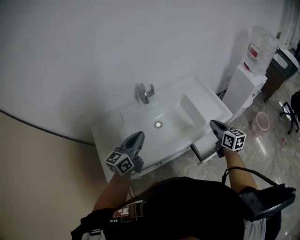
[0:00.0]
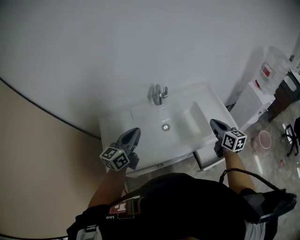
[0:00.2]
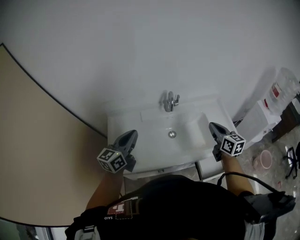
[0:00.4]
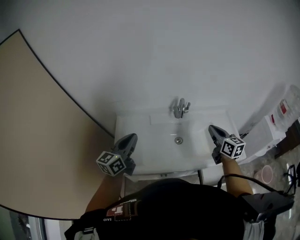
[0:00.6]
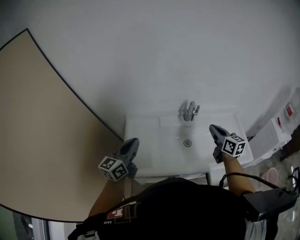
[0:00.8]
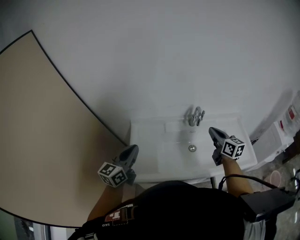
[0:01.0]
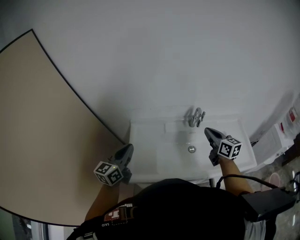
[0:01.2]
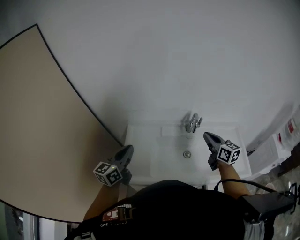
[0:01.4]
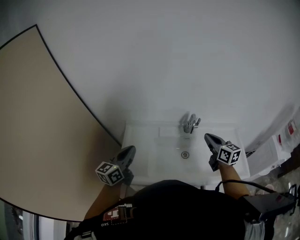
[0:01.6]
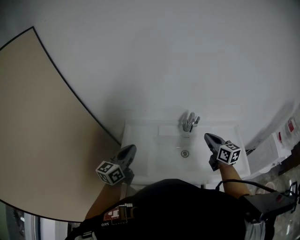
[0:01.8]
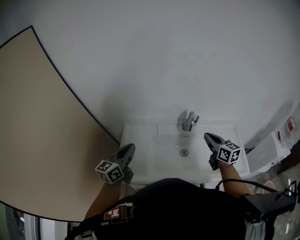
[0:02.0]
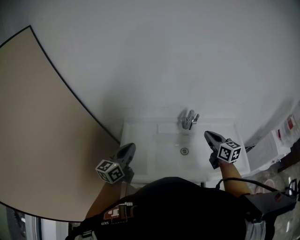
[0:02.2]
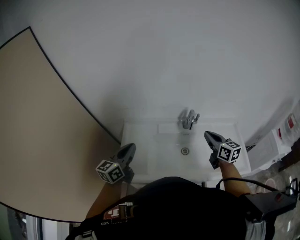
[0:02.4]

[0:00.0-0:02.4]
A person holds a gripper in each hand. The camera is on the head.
0:00.0 to 0:01.2: The right gripper moves roughly 35 cm, and turns by approximately 30 degrees; the left gripper ends up about 30 cm from where it was, and swivels about 30 degrees.
0:01.2 to 0:02.4: The two grippers go some 5 cm to the right.

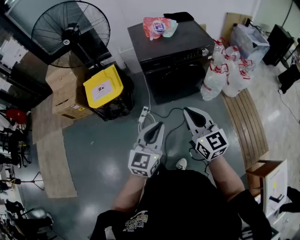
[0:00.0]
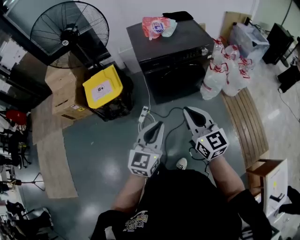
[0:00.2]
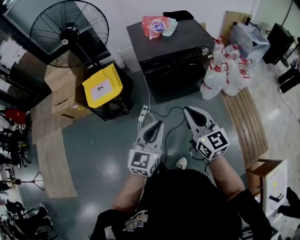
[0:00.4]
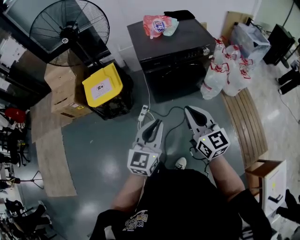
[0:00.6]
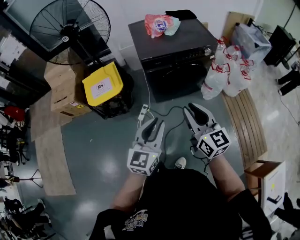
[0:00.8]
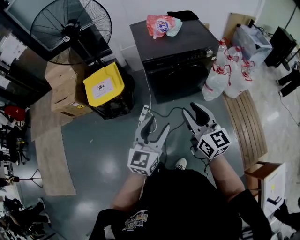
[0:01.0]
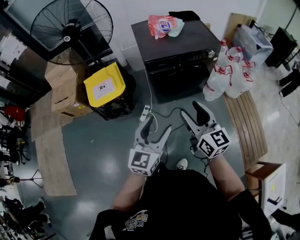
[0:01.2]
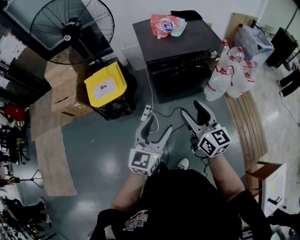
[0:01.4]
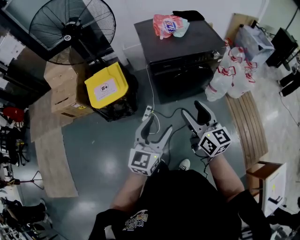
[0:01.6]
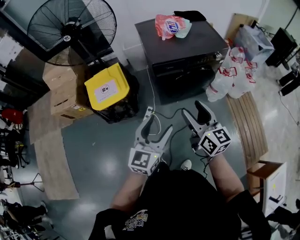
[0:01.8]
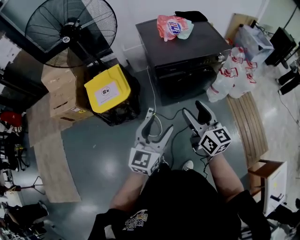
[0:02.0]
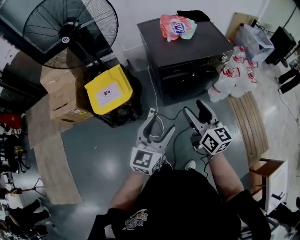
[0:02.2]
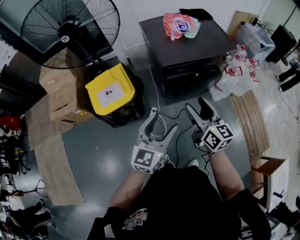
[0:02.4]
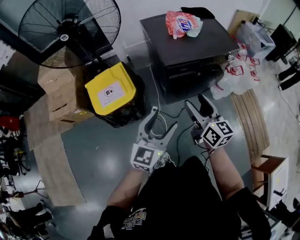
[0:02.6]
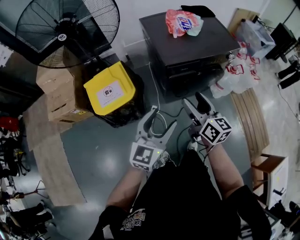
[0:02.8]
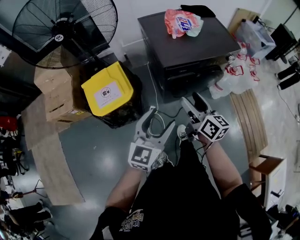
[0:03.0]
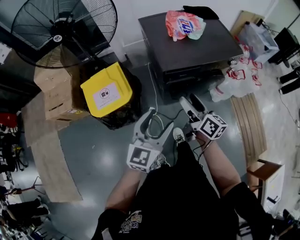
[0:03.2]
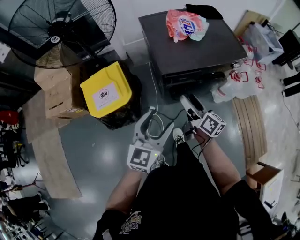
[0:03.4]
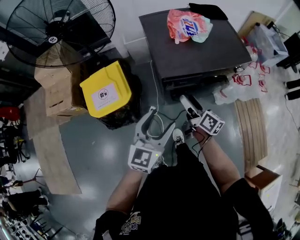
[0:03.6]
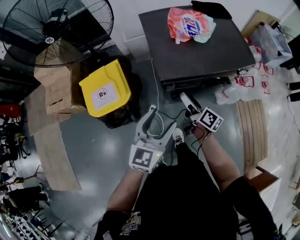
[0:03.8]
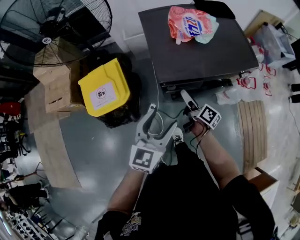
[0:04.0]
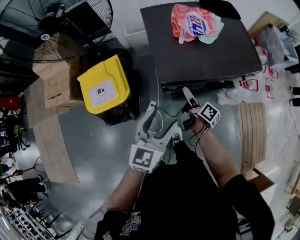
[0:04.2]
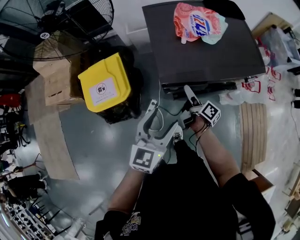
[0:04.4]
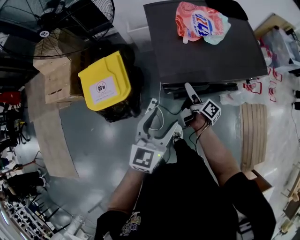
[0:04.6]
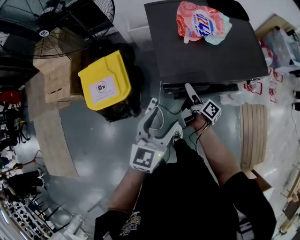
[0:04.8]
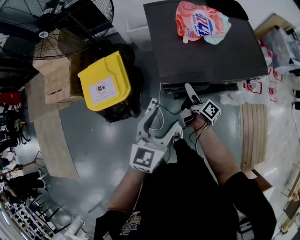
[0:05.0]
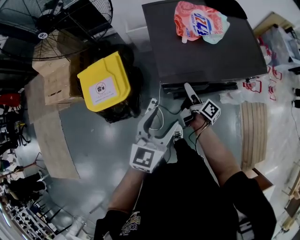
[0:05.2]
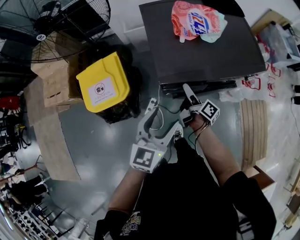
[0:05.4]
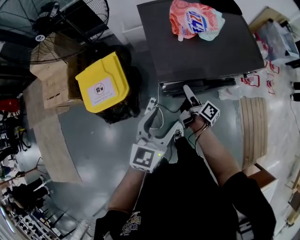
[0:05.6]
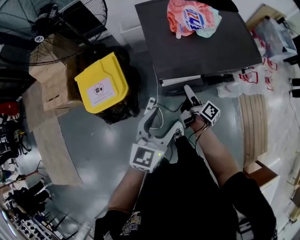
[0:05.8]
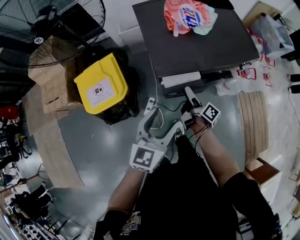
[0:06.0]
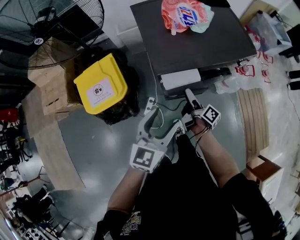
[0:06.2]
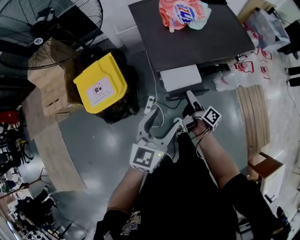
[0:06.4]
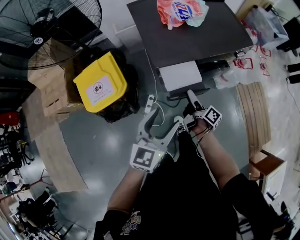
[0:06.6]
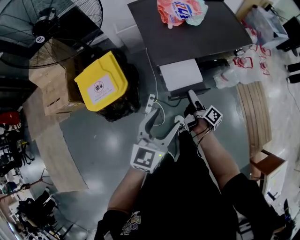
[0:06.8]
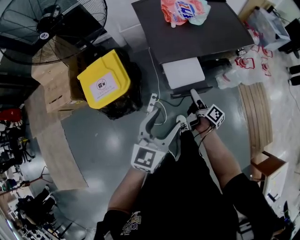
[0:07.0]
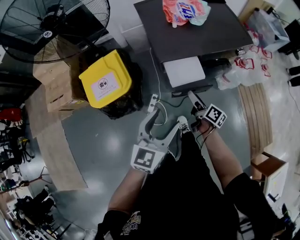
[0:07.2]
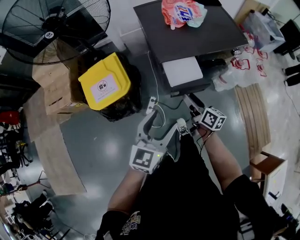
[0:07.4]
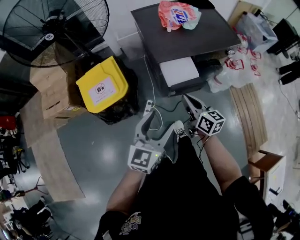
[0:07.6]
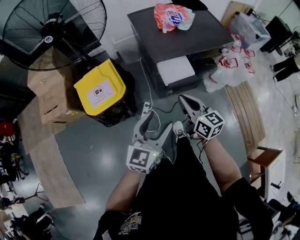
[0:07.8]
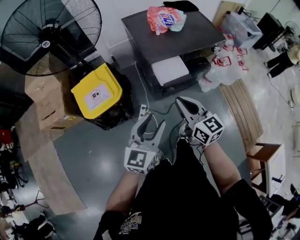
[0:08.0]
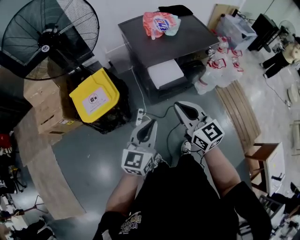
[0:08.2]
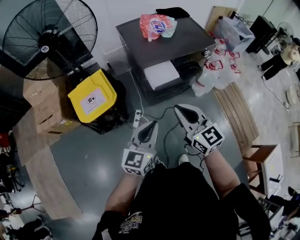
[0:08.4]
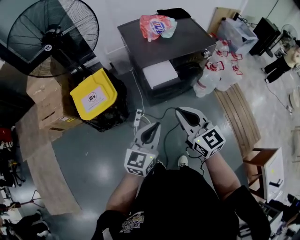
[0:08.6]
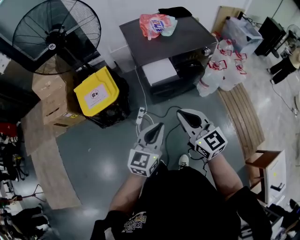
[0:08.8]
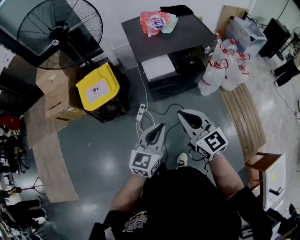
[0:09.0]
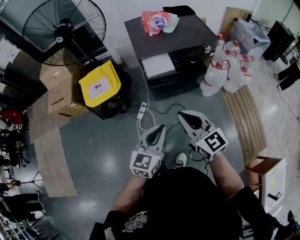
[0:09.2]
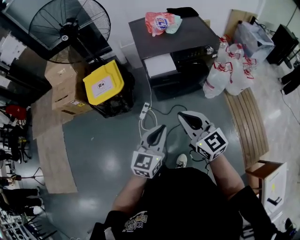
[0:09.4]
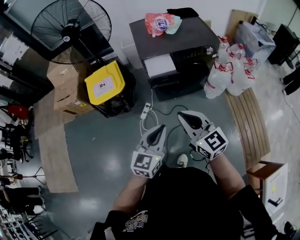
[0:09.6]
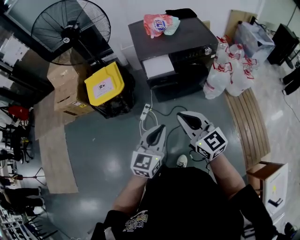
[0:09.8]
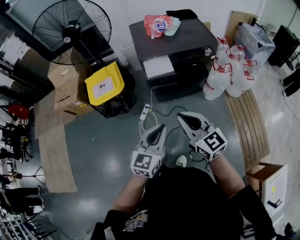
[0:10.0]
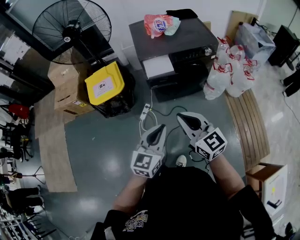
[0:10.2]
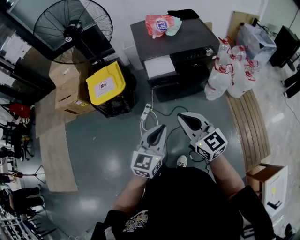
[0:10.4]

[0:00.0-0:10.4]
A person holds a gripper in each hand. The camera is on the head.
0:00.0 to 0:01.4: The left gripper shifts by roughly 5 cm, and opens. The right gripper travels forward by approximately 5 cm, and opens up.
0:01.4 to 0:03.0: Both grippers move forward and to the left, approximately 20 cm. The right gripper swivels approximately 20 degrees.
0:03.0 to 0:04.4: The right gripper is displaced downward and forward by roughly 30 cm, and rolls clockwise, seen from behind, by some 40 degrees. Meanwhile the left gripper is displaced forward and to the right by some 20 cm.
0:04.4 to 0:06.0: The right gripper shifts about 5 cm backward.
0:06.0 to 0:07.4: The right gripper shifts some 15 cm backward and upward, and turns by approximately 30 degrees; the left gripper heads backward, covering approximately 10 cm.
0:07.4 to 0:09.0: The right gripper goes some 30 cm backward and upward, rolls counterclockwise, seen from behind, by approximately 50 degrees, and closes its fingers; the left gripper travels backward and to the right by roughly 20 cm, and closes its fingers.
0:09.0 to 0:10.4: The grippers both shift backward by approximately 5 cm.

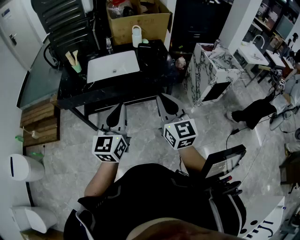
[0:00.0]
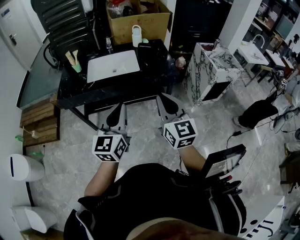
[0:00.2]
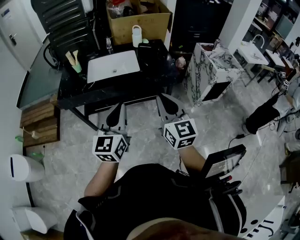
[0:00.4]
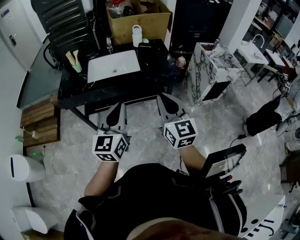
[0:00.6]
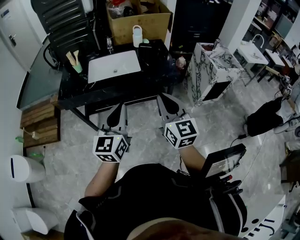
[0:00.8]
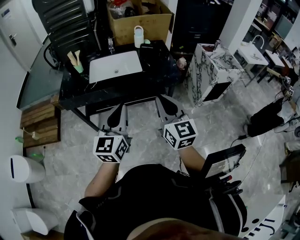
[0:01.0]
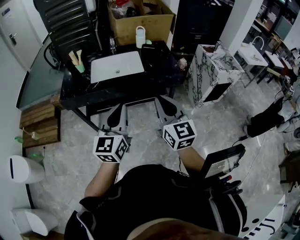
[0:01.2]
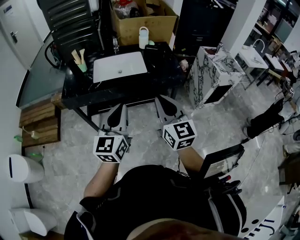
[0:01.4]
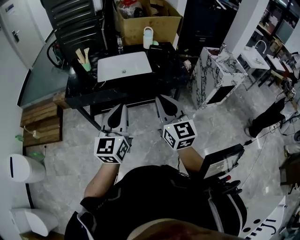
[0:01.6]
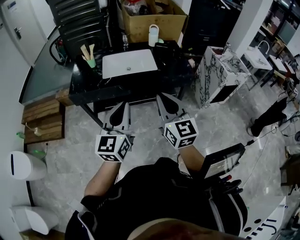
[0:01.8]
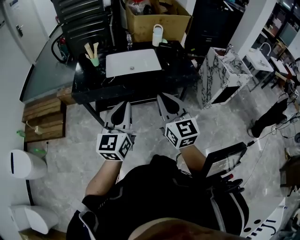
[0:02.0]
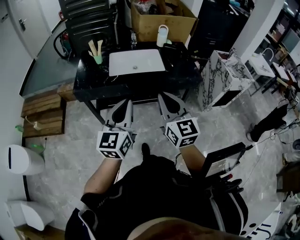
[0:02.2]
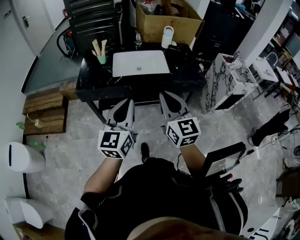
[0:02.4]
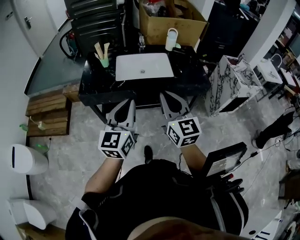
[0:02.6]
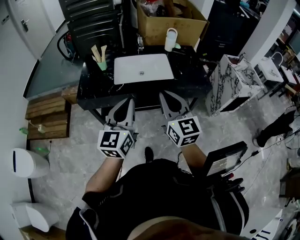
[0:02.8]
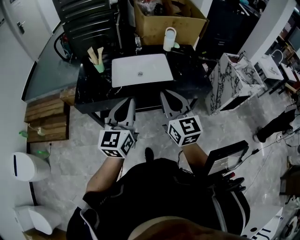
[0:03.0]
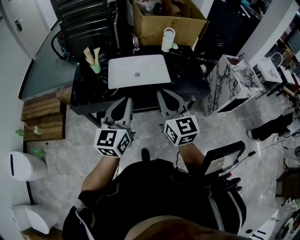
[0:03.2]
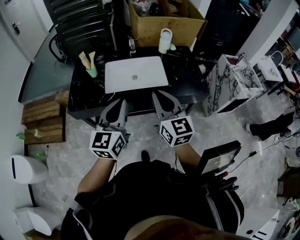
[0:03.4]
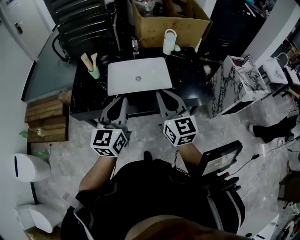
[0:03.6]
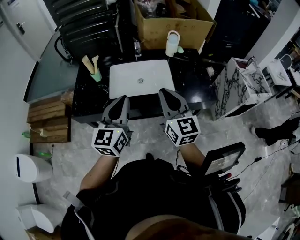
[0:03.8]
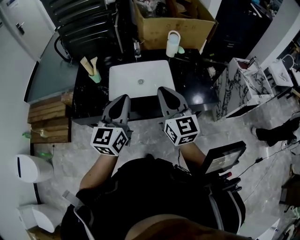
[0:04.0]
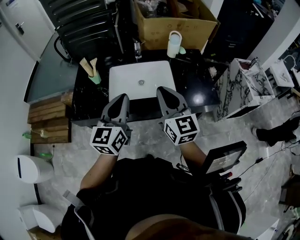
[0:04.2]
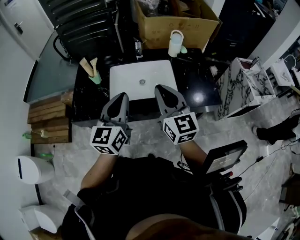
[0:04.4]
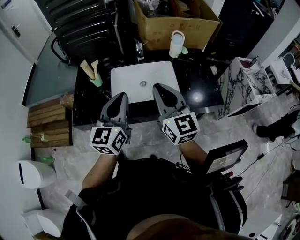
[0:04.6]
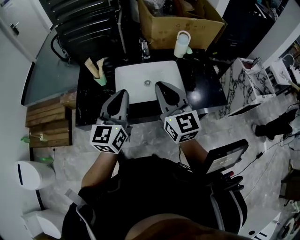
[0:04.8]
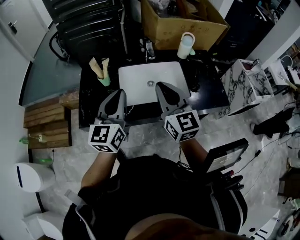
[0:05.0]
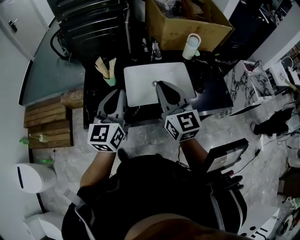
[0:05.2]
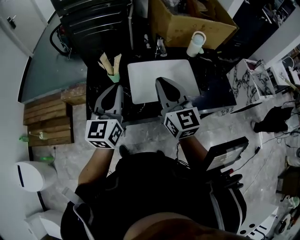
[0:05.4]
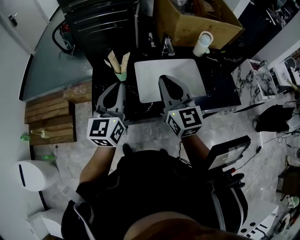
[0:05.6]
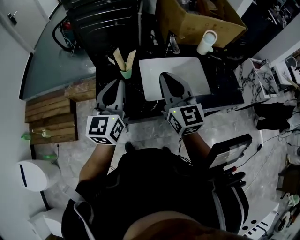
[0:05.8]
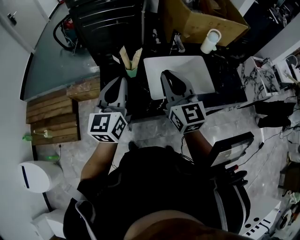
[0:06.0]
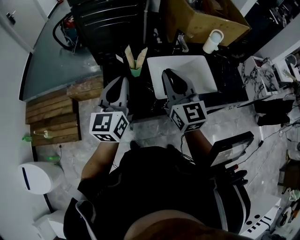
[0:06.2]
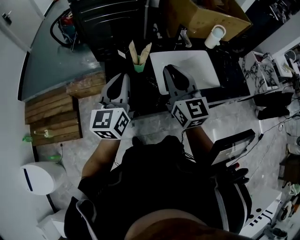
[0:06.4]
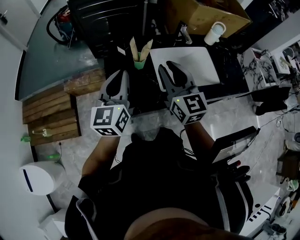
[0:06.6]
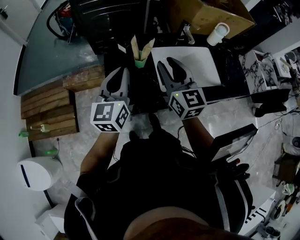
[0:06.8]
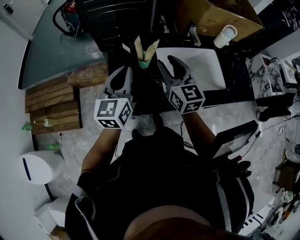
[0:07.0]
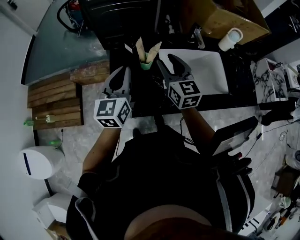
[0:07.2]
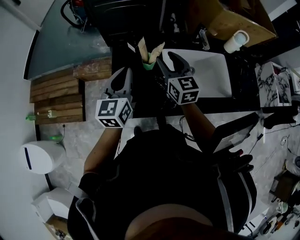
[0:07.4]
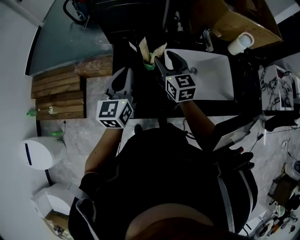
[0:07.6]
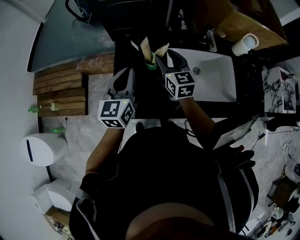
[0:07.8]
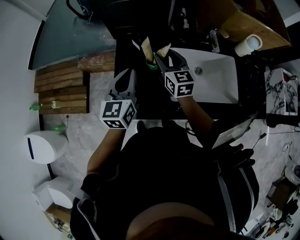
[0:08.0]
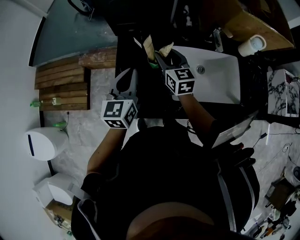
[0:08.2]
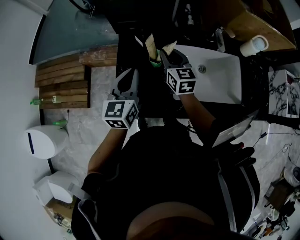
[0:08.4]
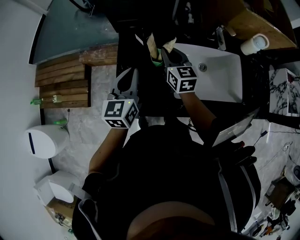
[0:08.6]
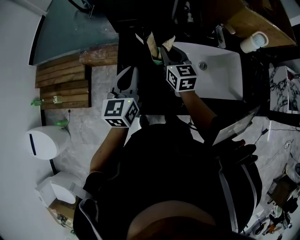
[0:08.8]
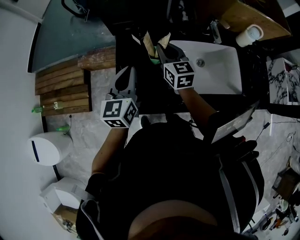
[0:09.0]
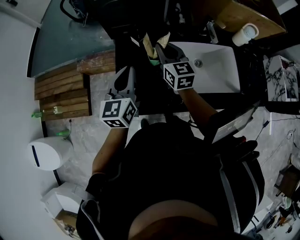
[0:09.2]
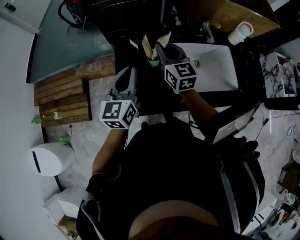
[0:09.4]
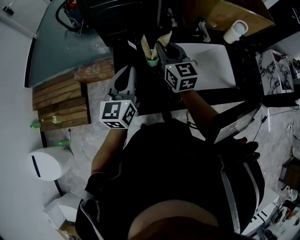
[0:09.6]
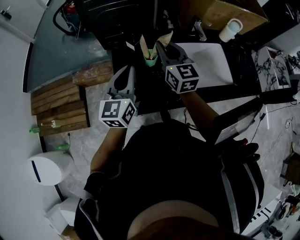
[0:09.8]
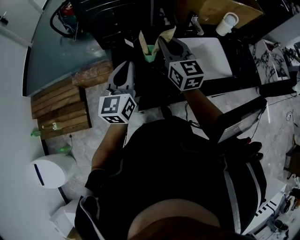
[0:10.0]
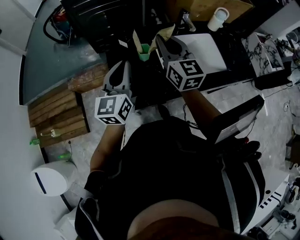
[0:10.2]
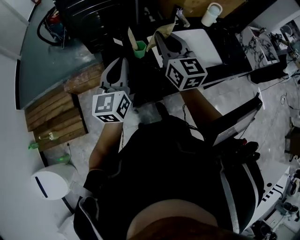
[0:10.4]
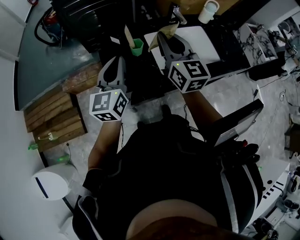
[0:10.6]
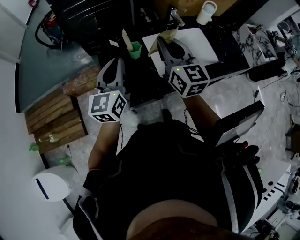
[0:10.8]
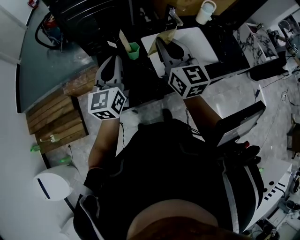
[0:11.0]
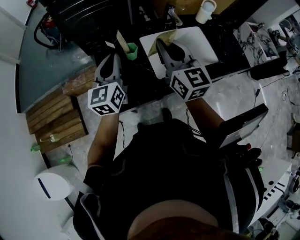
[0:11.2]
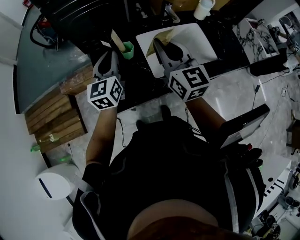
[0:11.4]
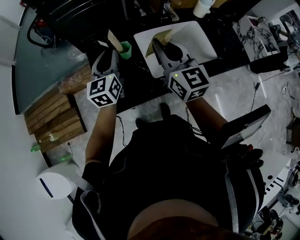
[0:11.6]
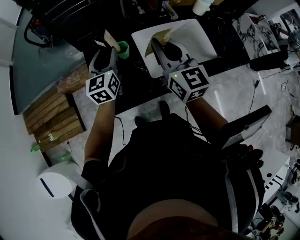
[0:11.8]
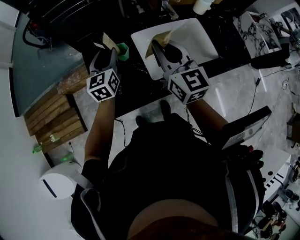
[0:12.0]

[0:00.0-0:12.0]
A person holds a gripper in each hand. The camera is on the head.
0:00.0 to 0:01.6: The grippers both shift to the left by about 10 cm.
0:01.6 to 0:03.0: Both grippers travel together forward and to the left, some 15 cm.
0:03.0 to 0:04.4: Both grippers travel together forward, roughly 15 cm.
0:04.4 to 0:06.0: The grippers both shift to the left by about 25 cm.
0:06.0 to 0:07.6: The left gripper shifts roughly 10 cm forward and downward; the right gripper travels forward, downward and to the left by about 20 cm, and opens its fingers.
0:07.6 to 0:09.0: The right gripper changes place by approximately 5 cm, and closes up.
0:09.0 to 0:10.4: The right gripper goes approximately 20 cm upward and backward, and turns by roughly 20 degrees. Meanwhile the left gripper moves upward, roughly 5 cm.
0:10.4 to 0:12.0: The left gripper heads forward and downward, covering approximately 15 cm, and opens. Meanwhile the right gripper heads to the right, covering some 5 cm.
